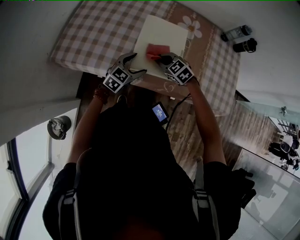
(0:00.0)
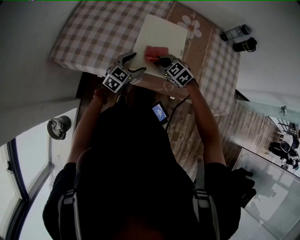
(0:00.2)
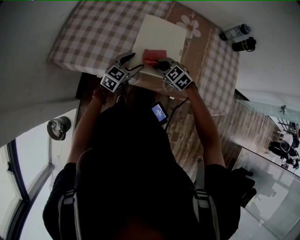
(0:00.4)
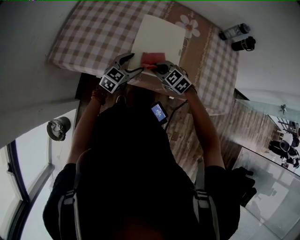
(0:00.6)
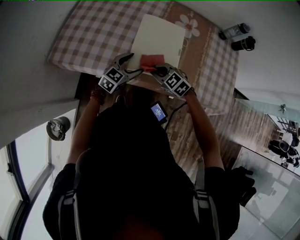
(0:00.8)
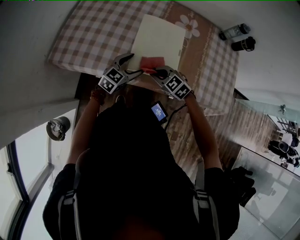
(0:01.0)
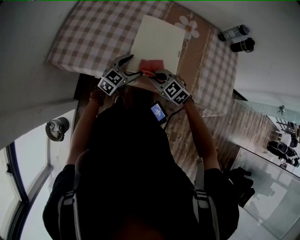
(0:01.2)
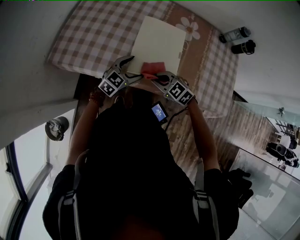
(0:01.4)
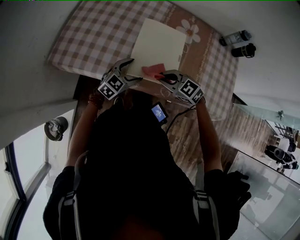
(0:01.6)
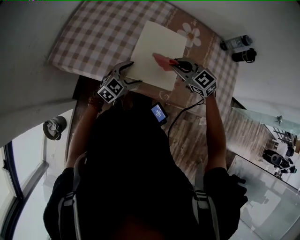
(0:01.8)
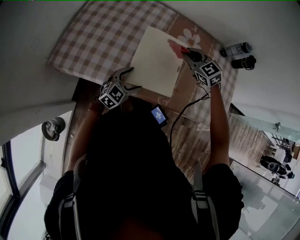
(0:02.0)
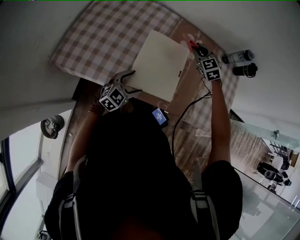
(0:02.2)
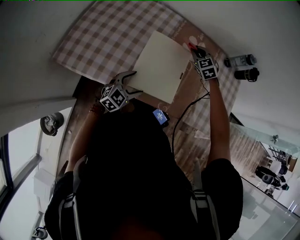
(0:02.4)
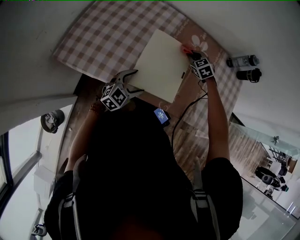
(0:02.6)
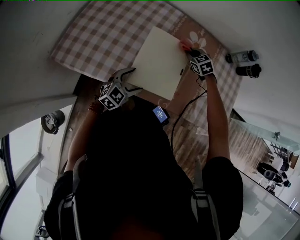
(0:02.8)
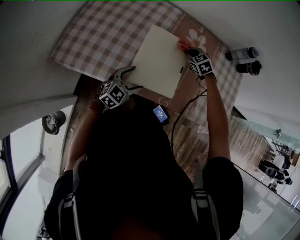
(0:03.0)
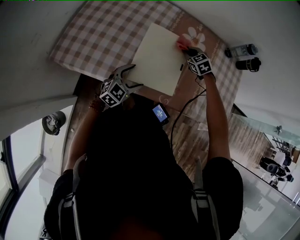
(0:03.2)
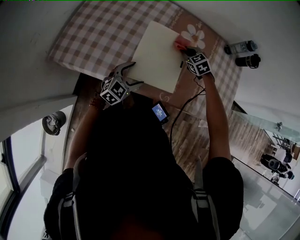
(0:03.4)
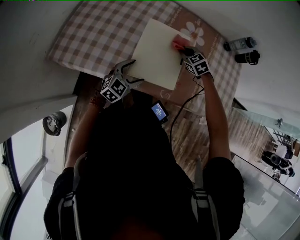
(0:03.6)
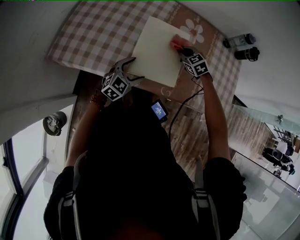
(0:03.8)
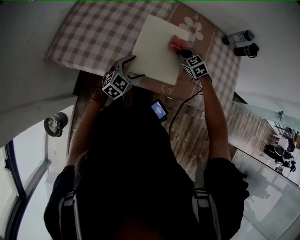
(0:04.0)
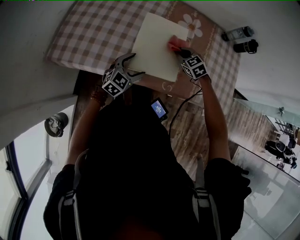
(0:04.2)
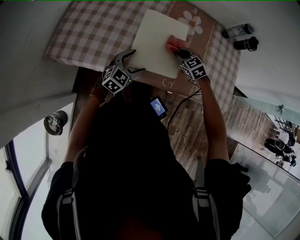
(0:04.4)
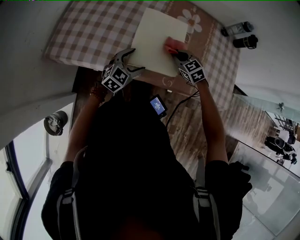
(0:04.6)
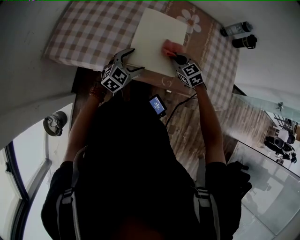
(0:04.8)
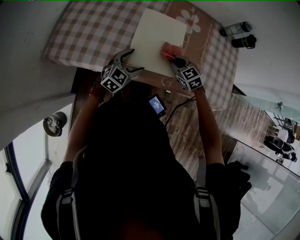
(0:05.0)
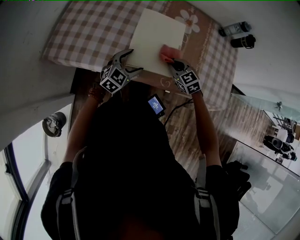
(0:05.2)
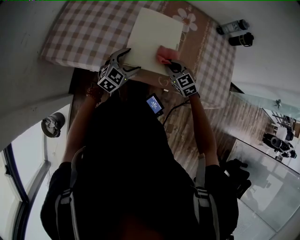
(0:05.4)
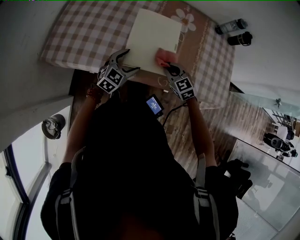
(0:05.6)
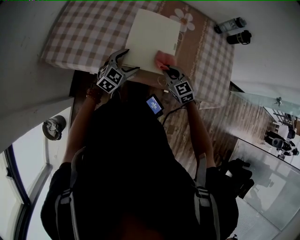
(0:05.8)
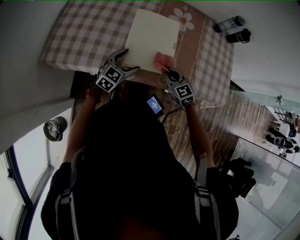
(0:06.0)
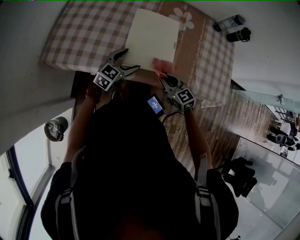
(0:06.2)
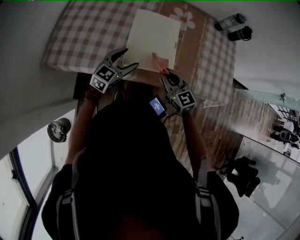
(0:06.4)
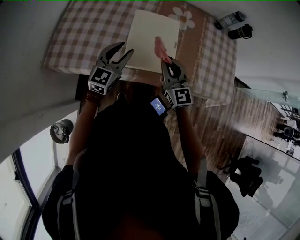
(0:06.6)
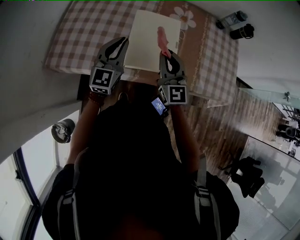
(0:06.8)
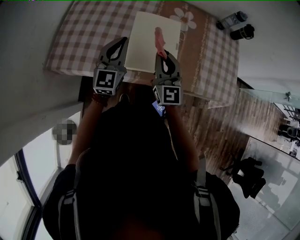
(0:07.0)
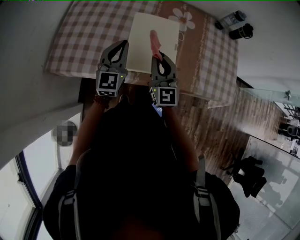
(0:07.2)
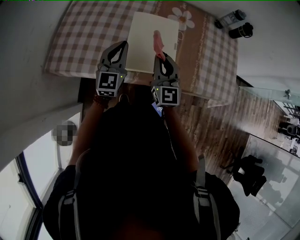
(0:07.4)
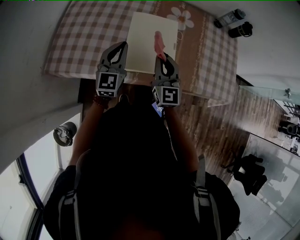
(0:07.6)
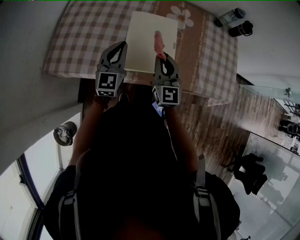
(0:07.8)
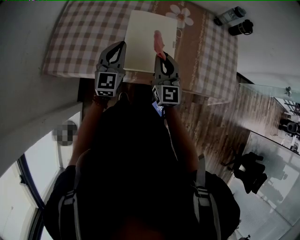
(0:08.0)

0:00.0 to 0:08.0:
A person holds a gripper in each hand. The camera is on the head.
0:00.0 to 0:01.6: The right gripper goes some 10 cm backward and upward.
0:01.6 to 0:03.2: The right gripper travels forward and to the right by some 25 cm, and swivels roughly 30 degrees.
0:03.2 to 0:04.8: The right gripper is displaced backward by roughly 15 cm.
0:04.8 to 0:06.4: The left gripper is displaced upward by roughly 5 cm; the right gripper travels backward and upward by some 10 cm, and changes its angle by approximately 30 degrees.
0:06.4 to 0:08.0: Both grippers move upward and forward, some 10 cm. The right gripper changes its angle by approximately 30 degrees, while the left gripper rotates approximately 30 degrees, and closes up.

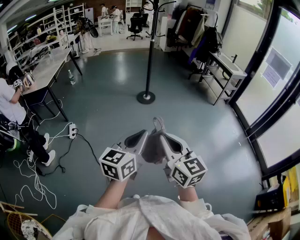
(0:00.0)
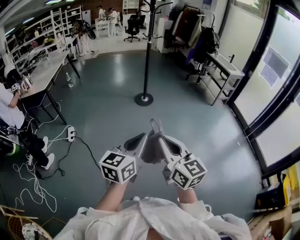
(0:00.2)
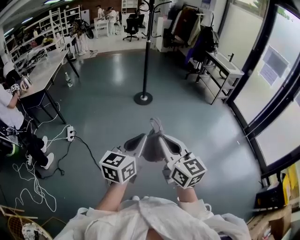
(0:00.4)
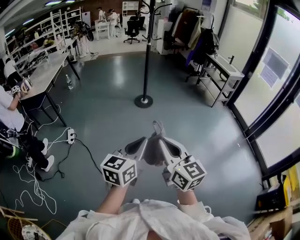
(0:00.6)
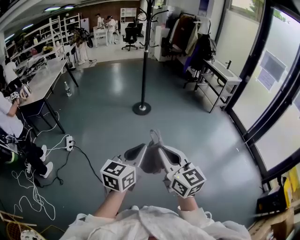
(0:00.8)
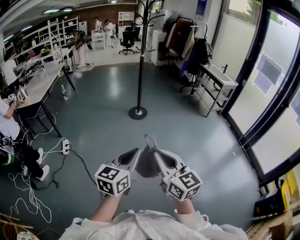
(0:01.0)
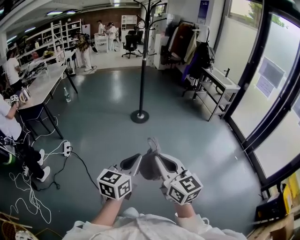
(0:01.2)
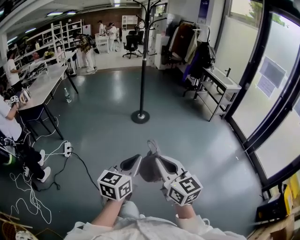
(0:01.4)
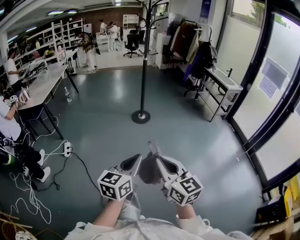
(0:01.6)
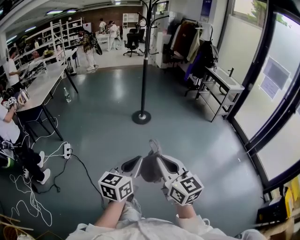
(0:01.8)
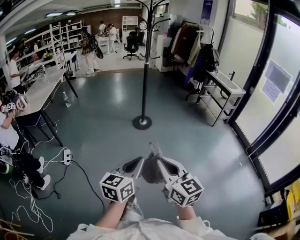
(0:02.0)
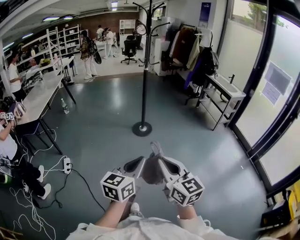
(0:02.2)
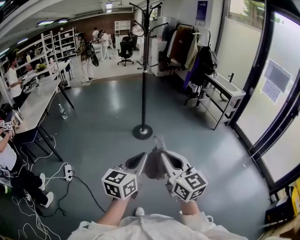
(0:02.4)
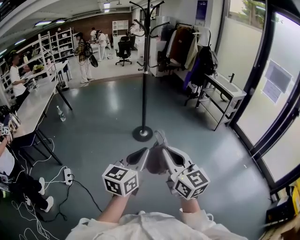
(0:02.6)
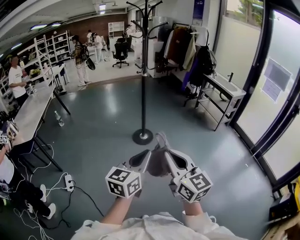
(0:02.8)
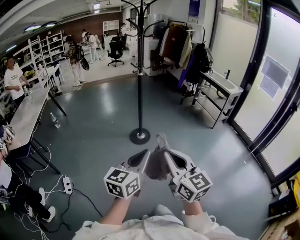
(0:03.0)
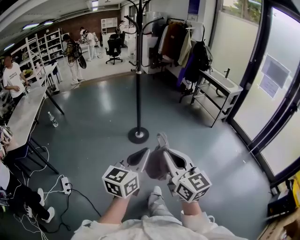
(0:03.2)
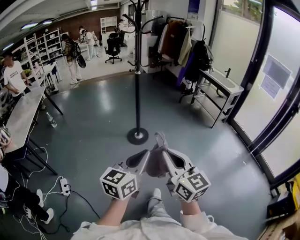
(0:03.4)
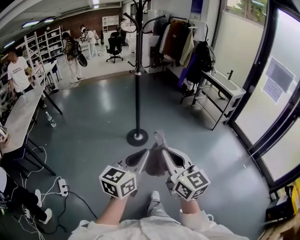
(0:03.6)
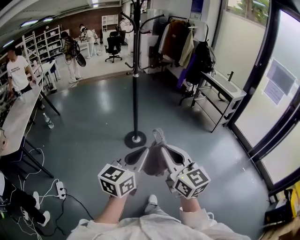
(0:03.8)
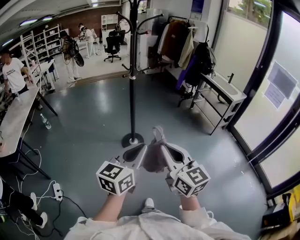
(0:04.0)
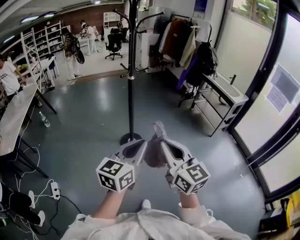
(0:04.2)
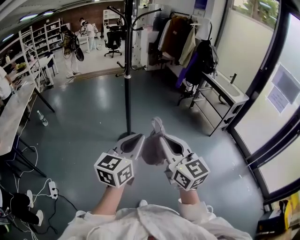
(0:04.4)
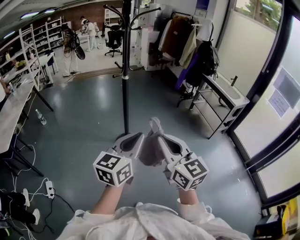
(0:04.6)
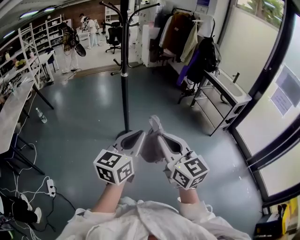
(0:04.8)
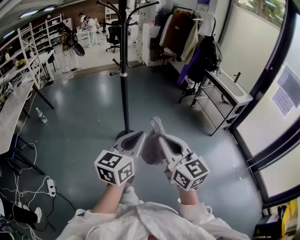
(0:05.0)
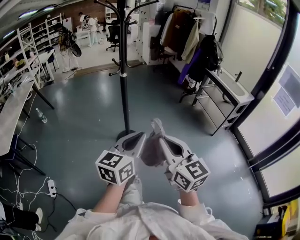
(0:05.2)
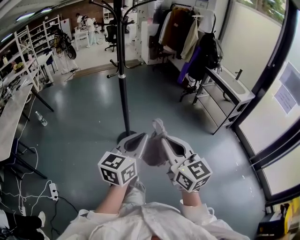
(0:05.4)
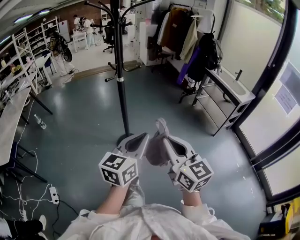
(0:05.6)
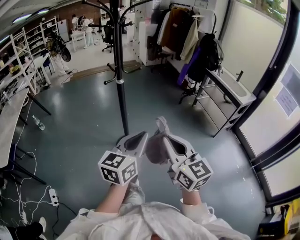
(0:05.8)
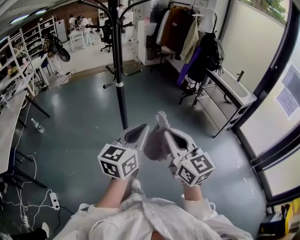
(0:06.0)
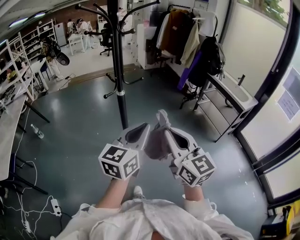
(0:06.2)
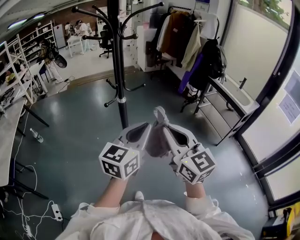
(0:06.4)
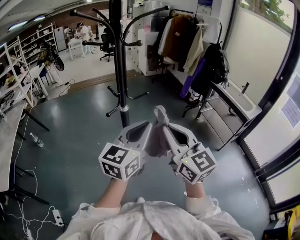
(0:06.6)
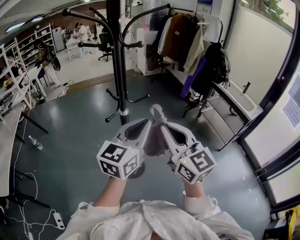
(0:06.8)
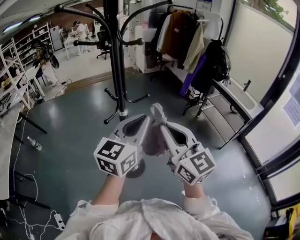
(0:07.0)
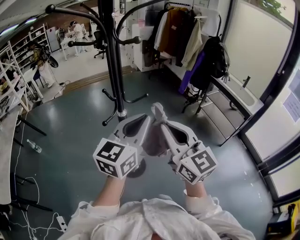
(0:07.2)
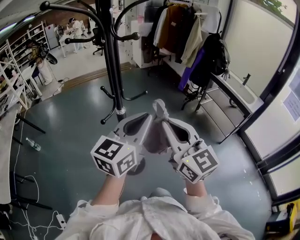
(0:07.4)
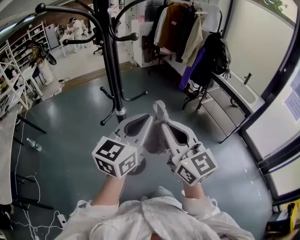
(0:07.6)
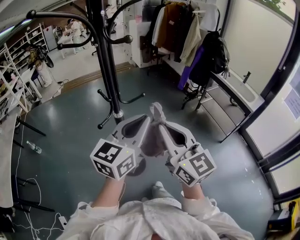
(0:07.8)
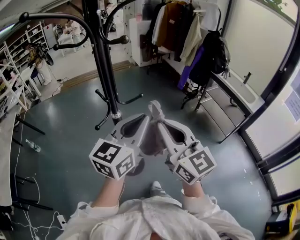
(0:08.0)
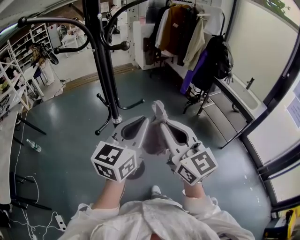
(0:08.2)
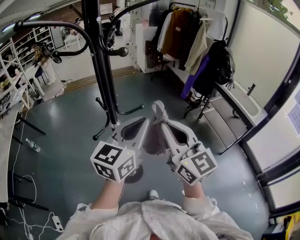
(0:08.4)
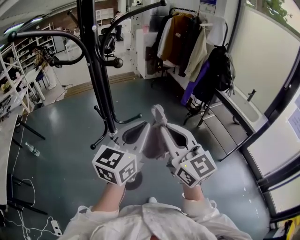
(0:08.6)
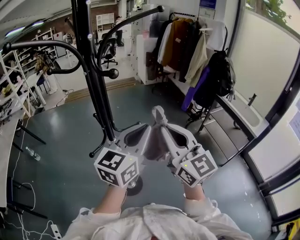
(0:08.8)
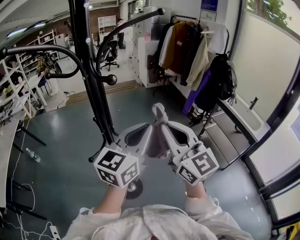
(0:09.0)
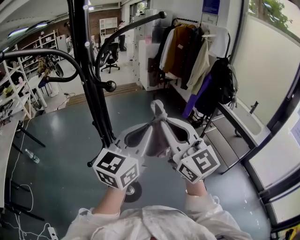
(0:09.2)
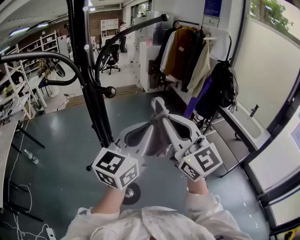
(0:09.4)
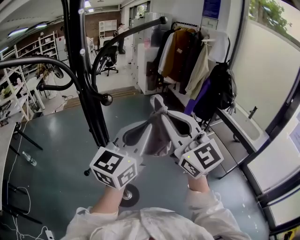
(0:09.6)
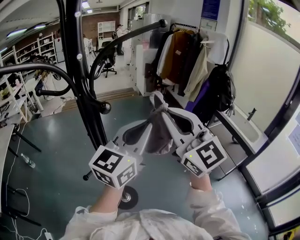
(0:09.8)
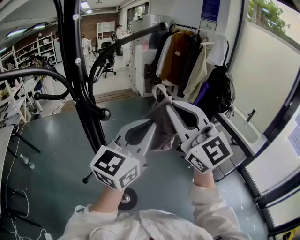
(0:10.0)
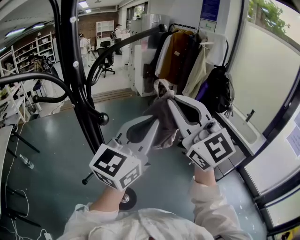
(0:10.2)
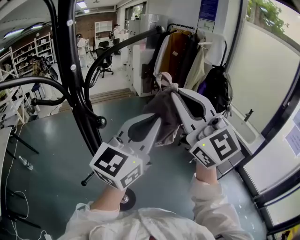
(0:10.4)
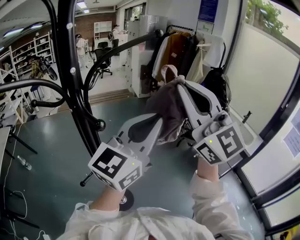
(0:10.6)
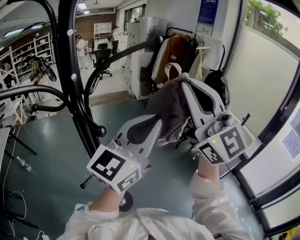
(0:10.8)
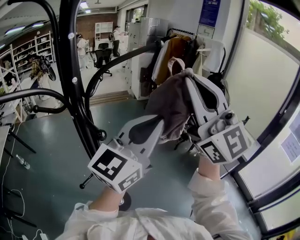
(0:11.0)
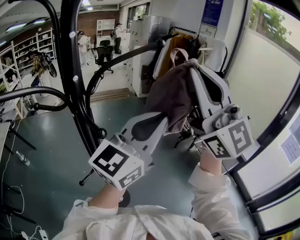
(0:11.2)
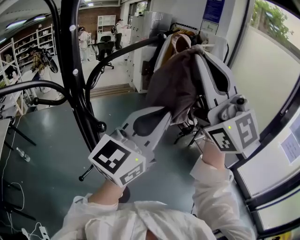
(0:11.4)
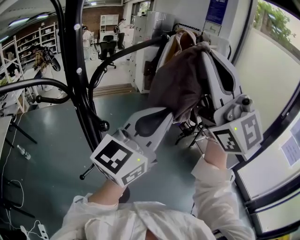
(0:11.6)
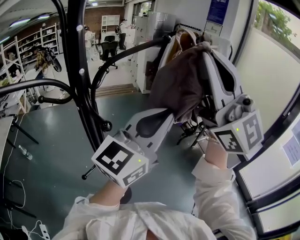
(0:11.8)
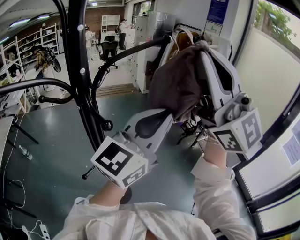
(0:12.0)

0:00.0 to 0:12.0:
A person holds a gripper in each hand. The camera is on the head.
0:00.0 to 0:01.6: The right gripper heads to the right, covering approximately 5 cm, while the left gripper ends up some 5 cm from where it was.
0:01.6 to 0:03.0: The two grippers go approximately 35 cm forward.
0:03.0 to 0:04.4: Both grippers travel together forward, some 30 cm.
0:04.4 to 0:06.0: Both grippers travel together forward, roughly 20 cm.
0:06.0 to 0:07.6: Both grippers travel together forward, about 25 cm.
0:07.6 to 0:09.0: The two grippers go some 15 cm forward.
0:09.0 to 0:10.4: The two grippers go some 15 cm upward and forward.
0:10.4 to 0:12.0: The right gripper shifts some 15 cm upward, and changes its angle by some 20 degrees; the left gripper shifts roughly 5 cm upward.

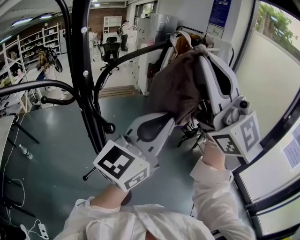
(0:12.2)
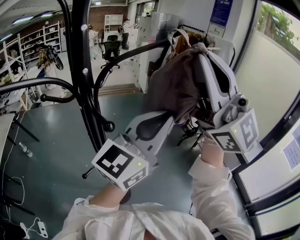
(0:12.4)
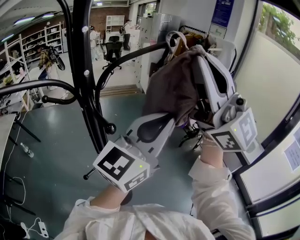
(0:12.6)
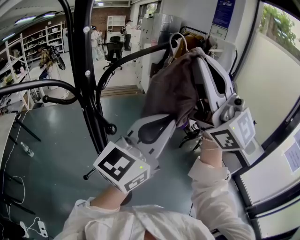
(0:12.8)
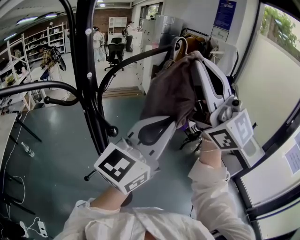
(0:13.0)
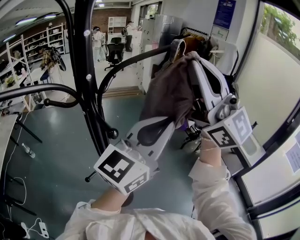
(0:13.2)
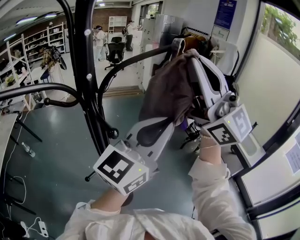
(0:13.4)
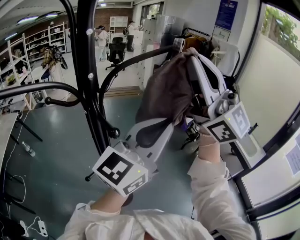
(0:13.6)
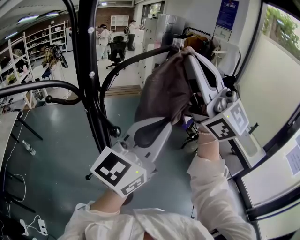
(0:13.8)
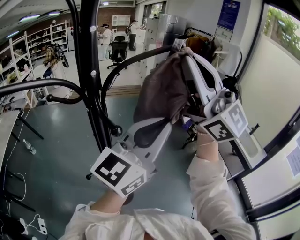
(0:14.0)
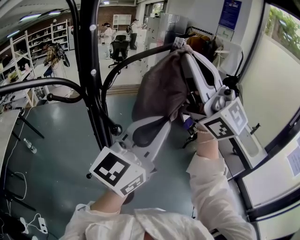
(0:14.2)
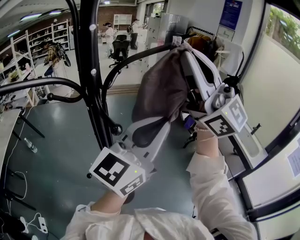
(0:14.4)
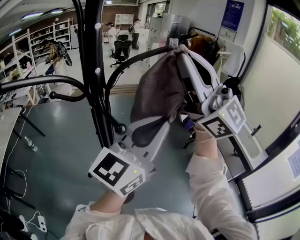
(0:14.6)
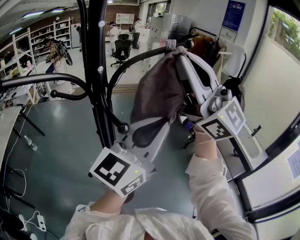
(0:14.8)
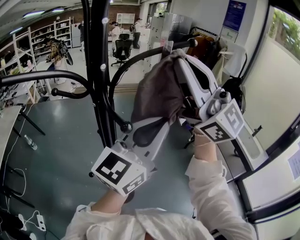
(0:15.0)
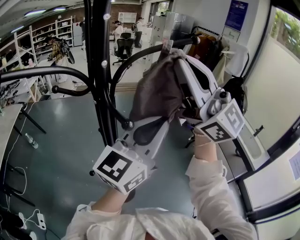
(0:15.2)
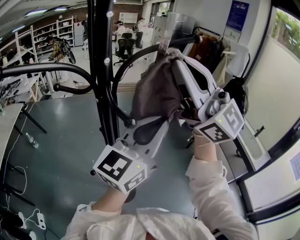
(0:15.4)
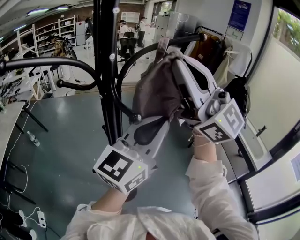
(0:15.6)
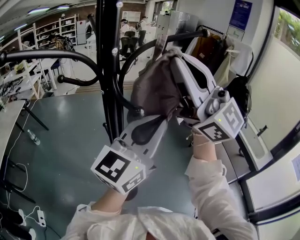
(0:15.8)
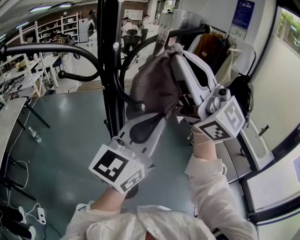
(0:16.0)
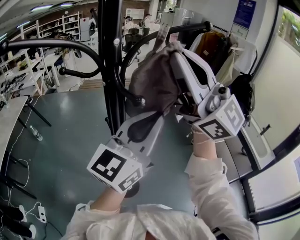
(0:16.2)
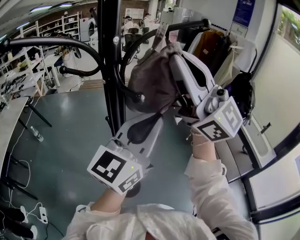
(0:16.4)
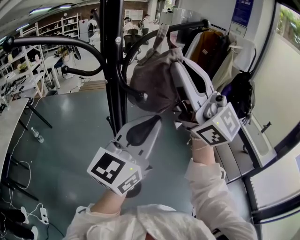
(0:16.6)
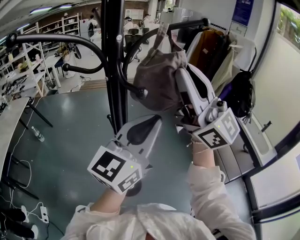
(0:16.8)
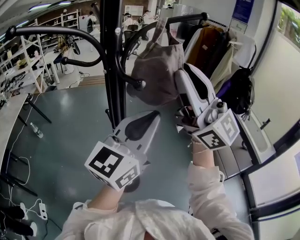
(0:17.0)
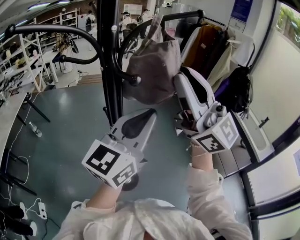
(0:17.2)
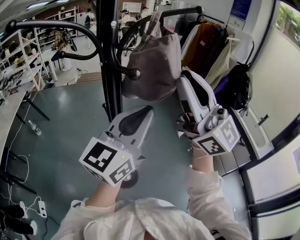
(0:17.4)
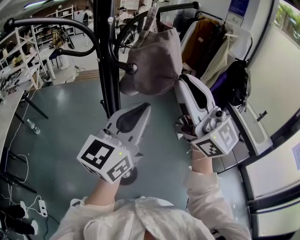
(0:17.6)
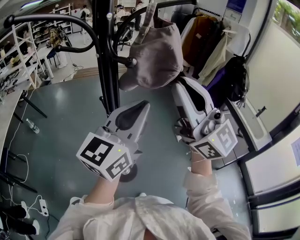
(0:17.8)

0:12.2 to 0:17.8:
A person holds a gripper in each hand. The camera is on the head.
0:12.2 to 0:13.6: The right gripper heads forward, covering approximately 5 cm.
0:13.6 to 0:15.0: The right gripper changes place by roughly 5 cm.
0:15.0 to 0:16.4: The right gripper shifts by approximately 5 cm; the left gripper ends up about 5 cm from where it was.
0:16.4 to 0:17.8: The right gripper moves downward and backward, approximately 10 cm.
